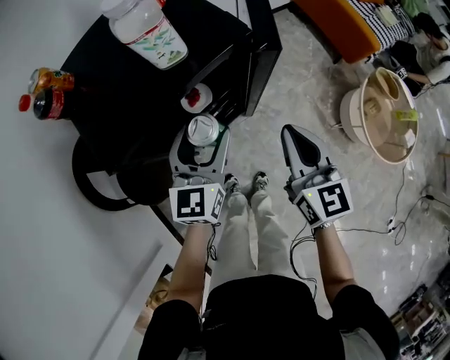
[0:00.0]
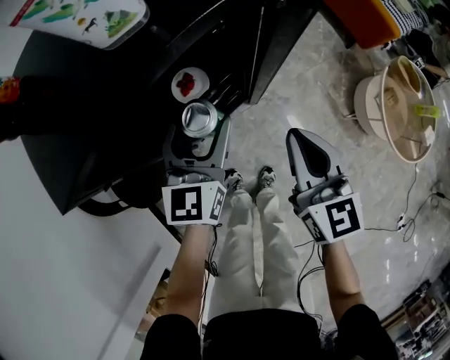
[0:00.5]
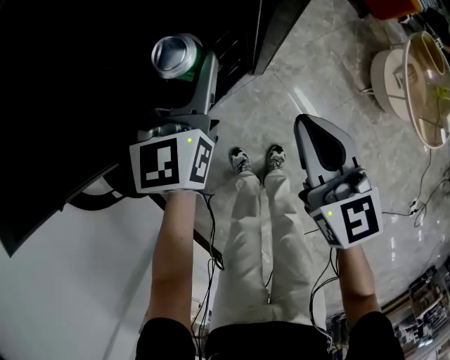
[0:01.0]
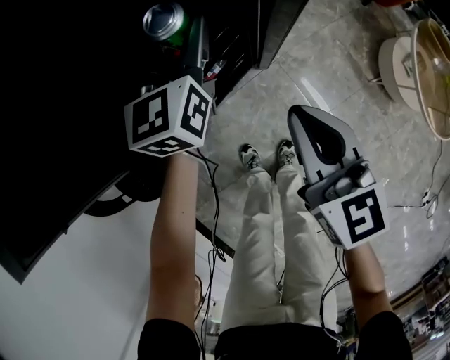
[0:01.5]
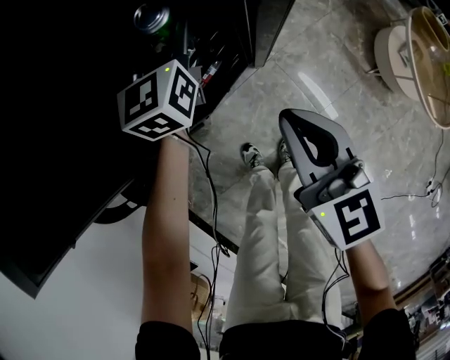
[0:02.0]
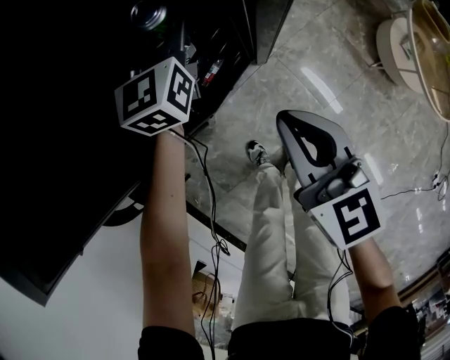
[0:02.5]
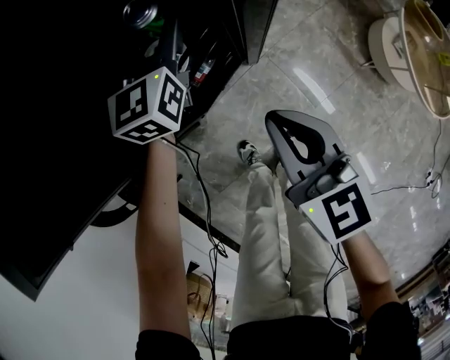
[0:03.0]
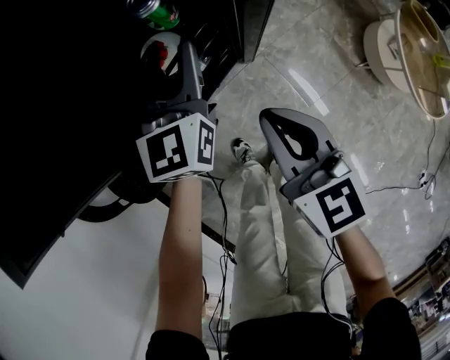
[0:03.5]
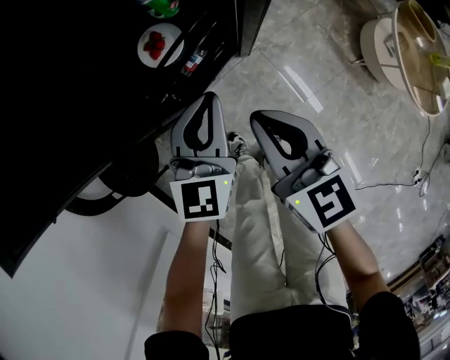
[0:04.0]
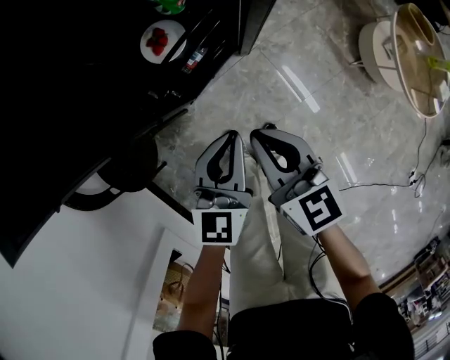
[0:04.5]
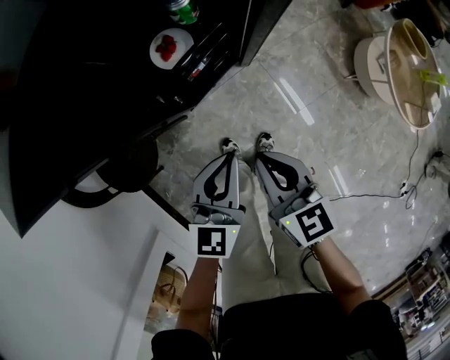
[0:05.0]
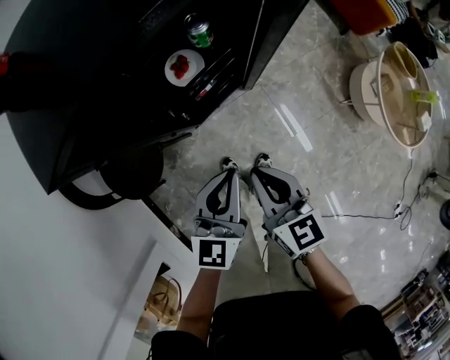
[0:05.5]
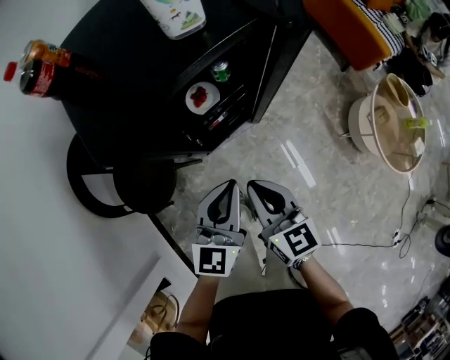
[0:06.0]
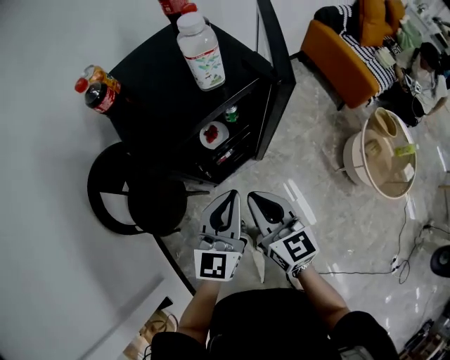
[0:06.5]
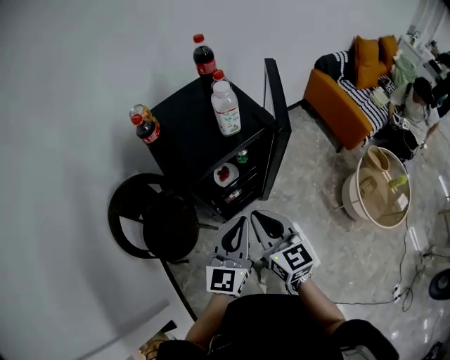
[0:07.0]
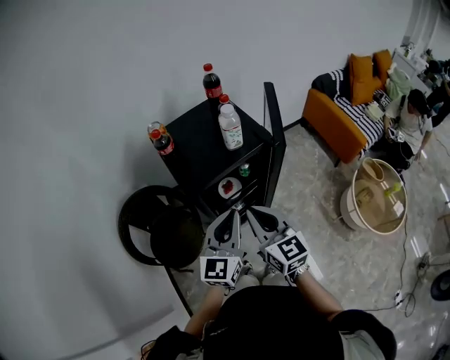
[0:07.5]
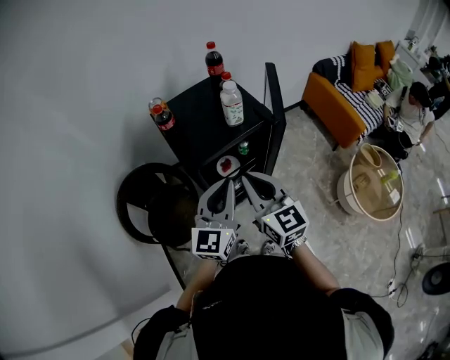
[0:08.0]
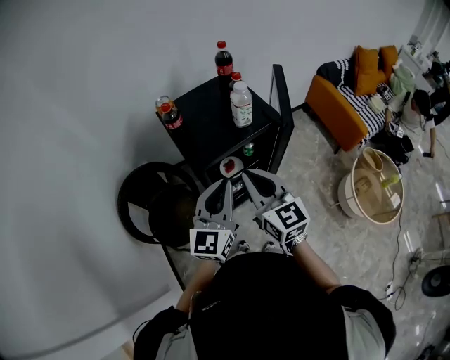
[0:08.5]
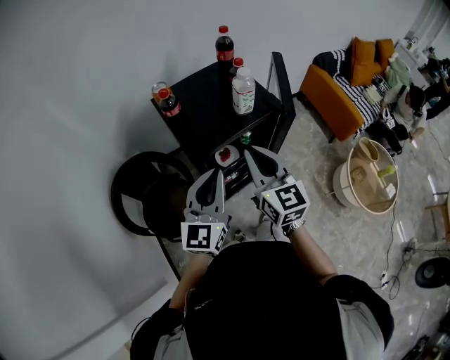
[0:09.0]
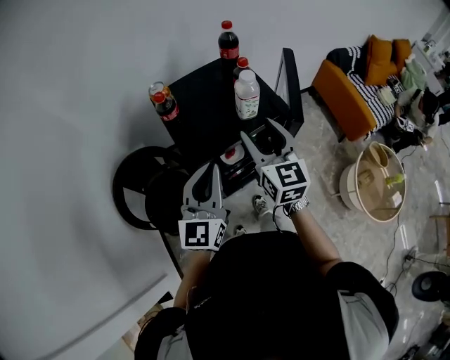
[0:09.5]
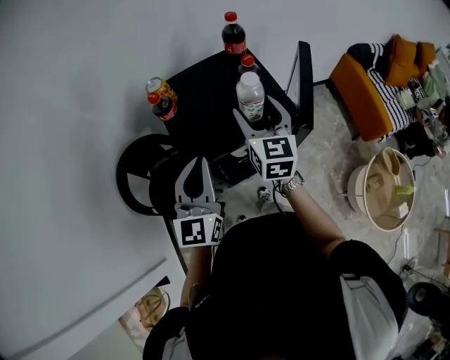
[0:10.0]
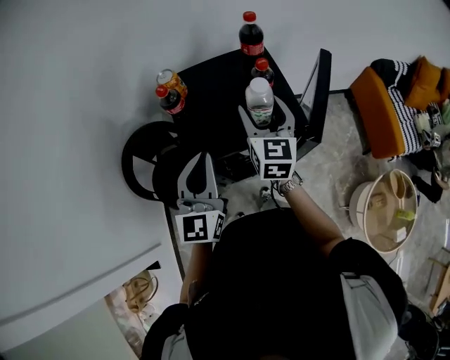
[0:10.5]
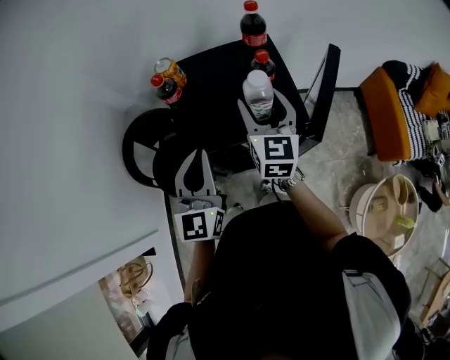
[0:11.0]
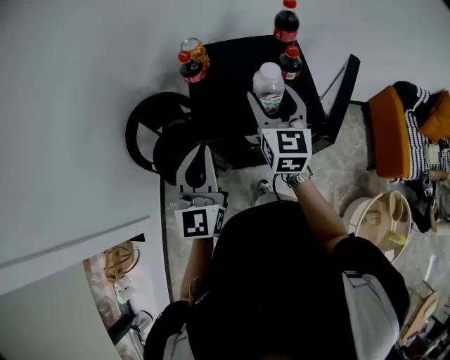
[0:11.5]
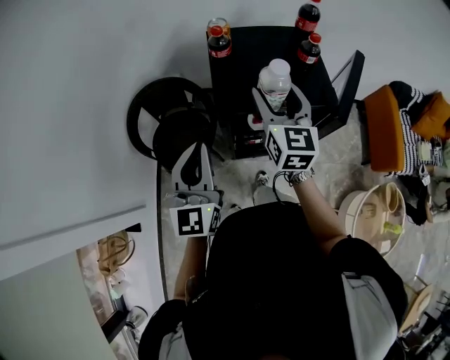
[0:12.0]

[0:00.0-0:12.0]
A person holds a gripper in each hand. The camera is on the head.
0:00.0 to 0:02.0: The right gripper is displaced downward by some 20 cm; the left gripper is displaced downward and forward by approximately 30 cm.
0:02.0 to 0:04.0: The right gripper moves some 5 cm. Meanwhile the left gripper moves backward, some 20 cm, and closes its fingers.
0:04.0 to 0:06.0: The right gripper travels upward and backward by about 15 cm. The left gripper moves upward and backward, about 20 cm.
0:06.0 to 0:08.0: Both grippers travel together upward, roughly 30 cm. The right gripper swivels about 20 degrees.
0:08.0 to 0:10.0: The left gripper heads forward and to the left, covering roughly 15 cm, and rotates about 20 degrees, while the right gripper shifts about 25 cm forward, and opens.
0:10.0 to 0:12.0: The left gripper travels backward and to the left by some 15 cm, while the right gripper shifts roughly 10 cm to the left and backward.

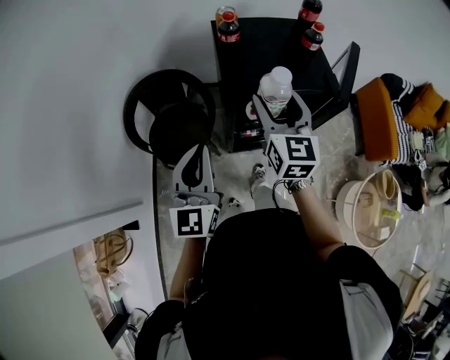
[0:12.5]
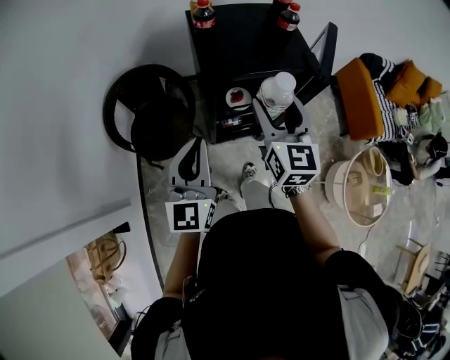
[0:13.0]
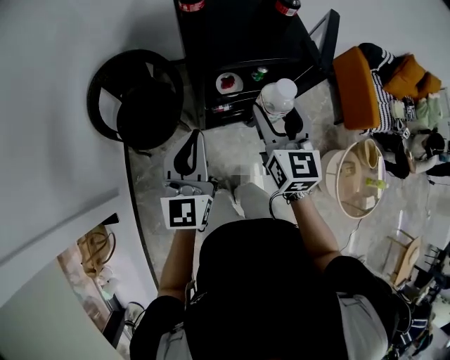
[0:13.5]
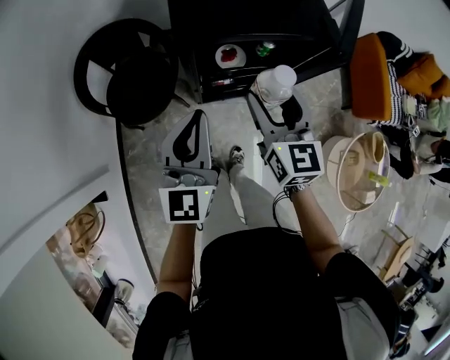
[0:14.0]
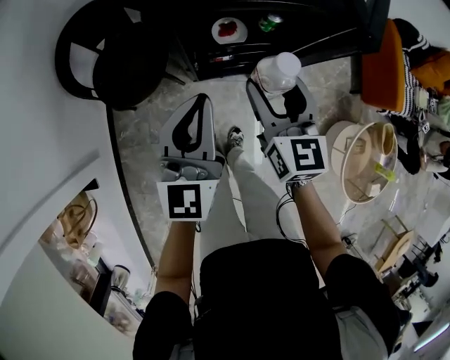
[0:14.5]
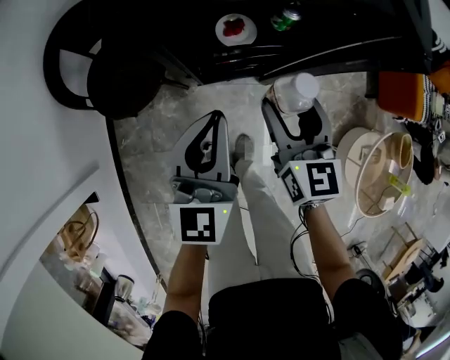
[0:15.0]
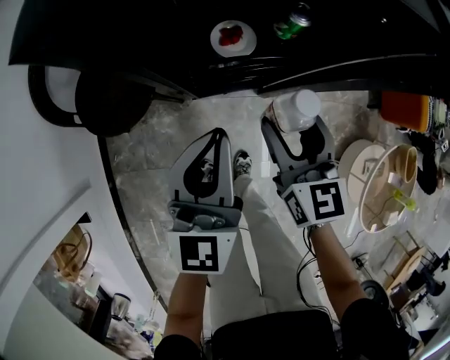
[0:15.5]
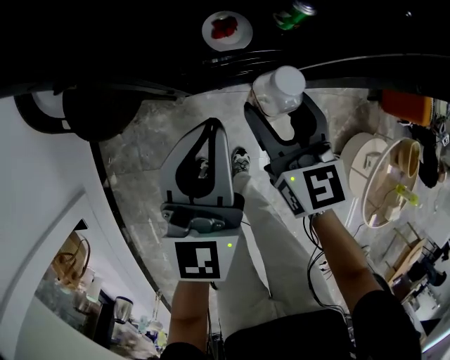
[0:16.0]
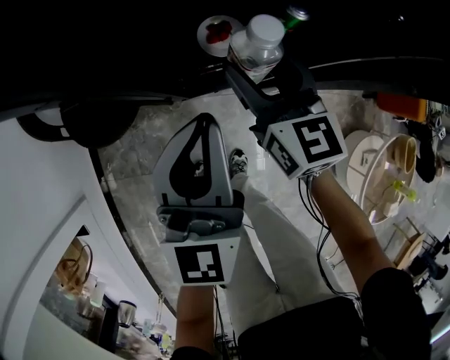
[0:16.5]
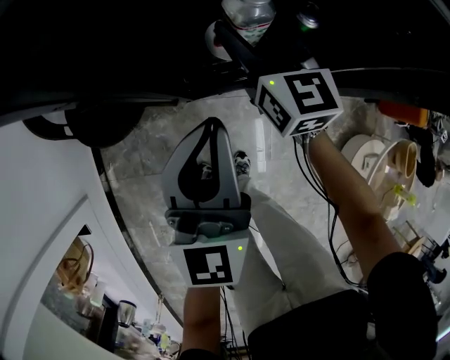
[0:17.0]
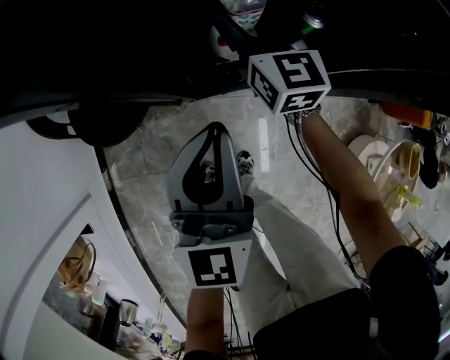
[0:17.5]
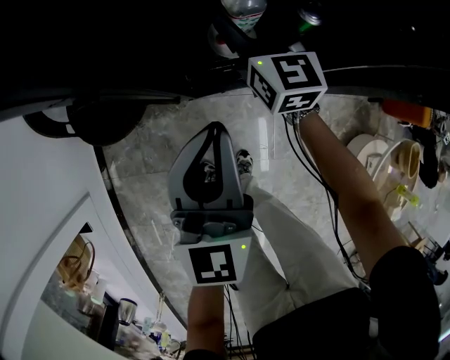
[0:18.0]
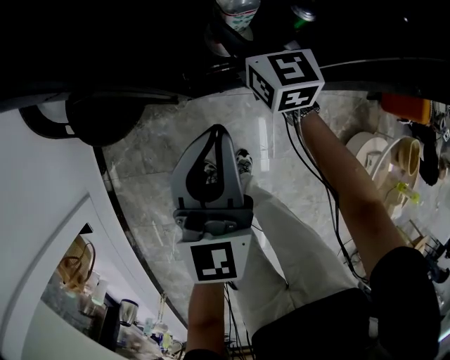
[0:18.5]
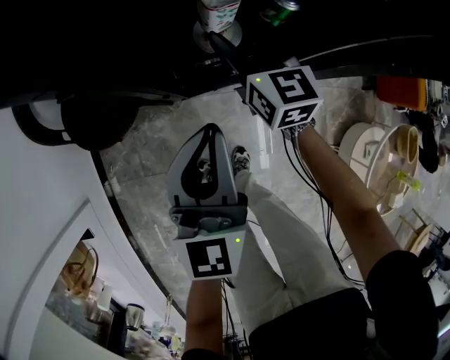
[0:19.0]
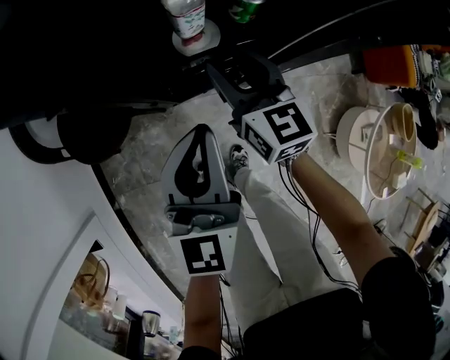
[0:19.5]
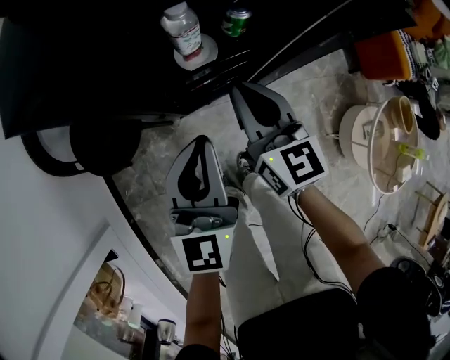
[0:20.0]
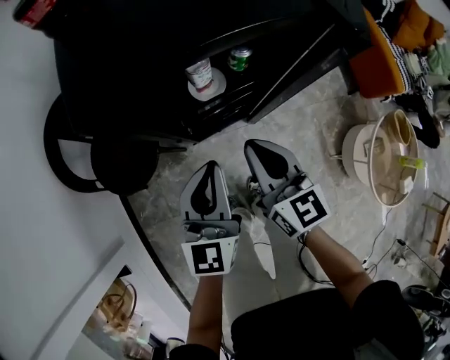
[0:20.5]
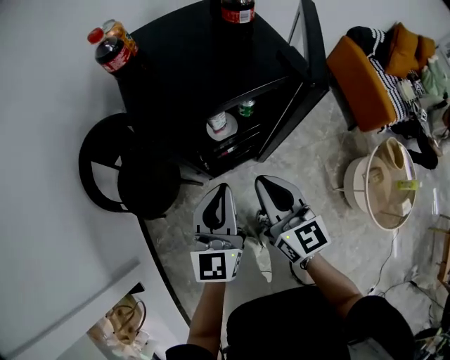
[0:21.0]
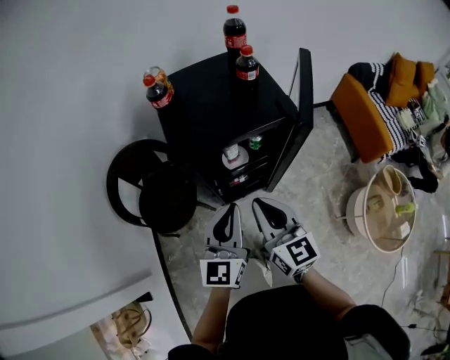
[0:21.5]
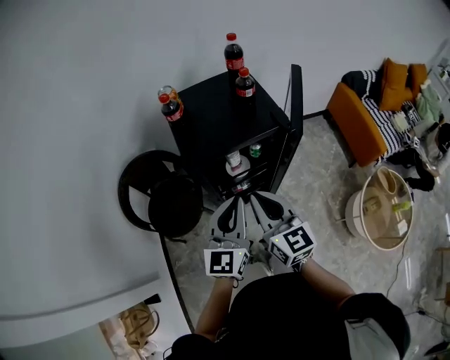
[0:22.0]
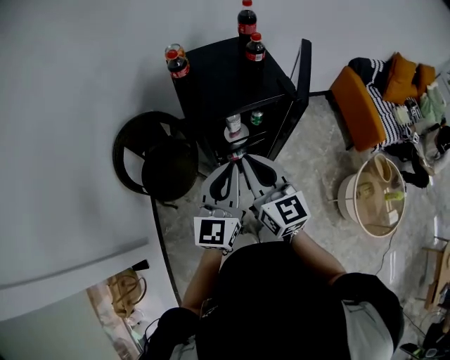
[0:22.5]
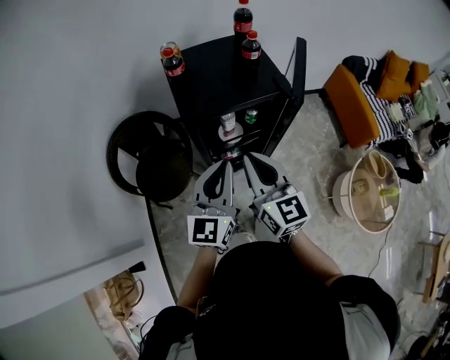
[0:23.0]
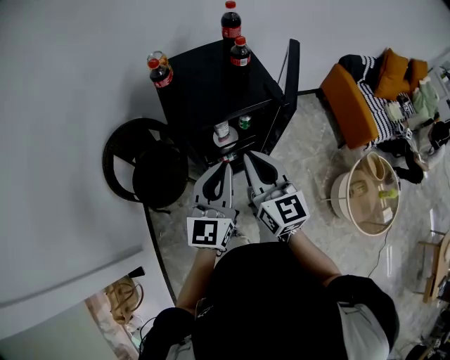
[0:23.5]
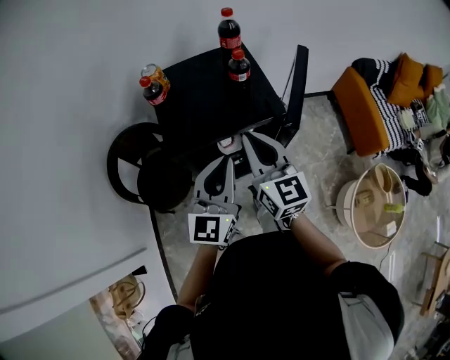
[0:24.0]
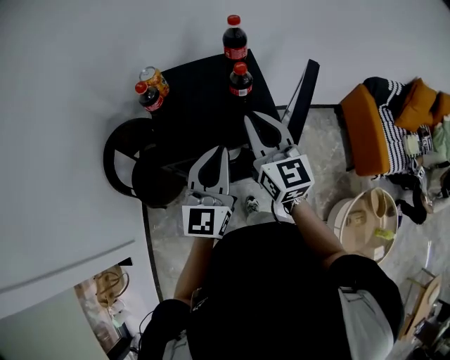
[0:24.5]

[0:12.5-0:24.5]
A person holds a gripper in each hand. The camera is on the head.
0:12.5 to 0:14.5: The two grippers go roughly 20 cm downward and to the right.
0:14.5 to 0:16.5: Both grippers move downward and forward, about 20 cm.
0:16.5 to 0:18.5: The right gripper is displaced forward by roughly 10 cm.
0:18.5 to 0:20.5: The left gripper moves roughly 5 cm; the right gripper heads backward and upward, covering about 25 cm, and closes.
0:20.5 to 0:22.5: The grippers both shift upward by approximately 25 cm.
0:22.5 to 0:24.5: The two grippers go some 20 cm forward and to the right.

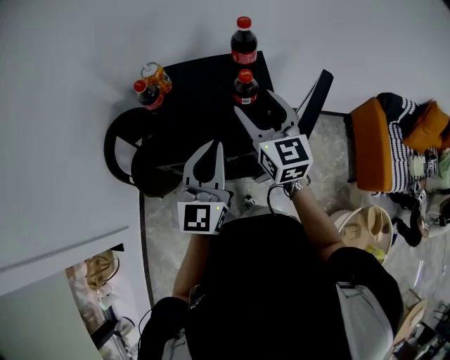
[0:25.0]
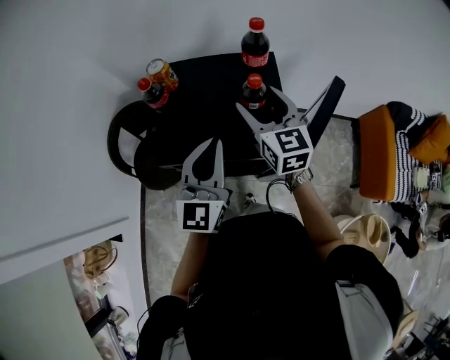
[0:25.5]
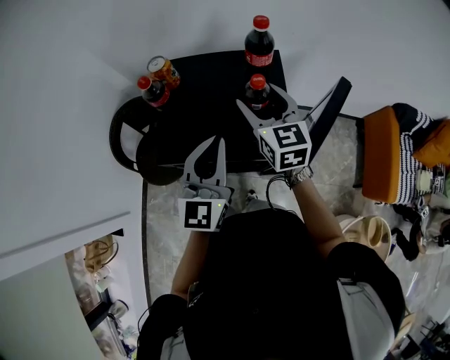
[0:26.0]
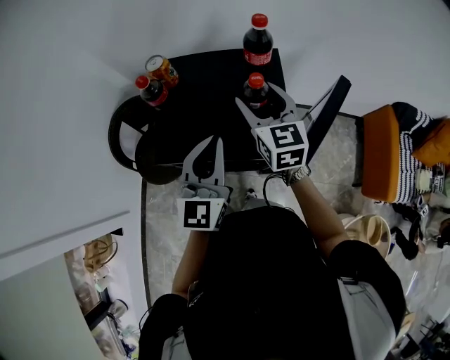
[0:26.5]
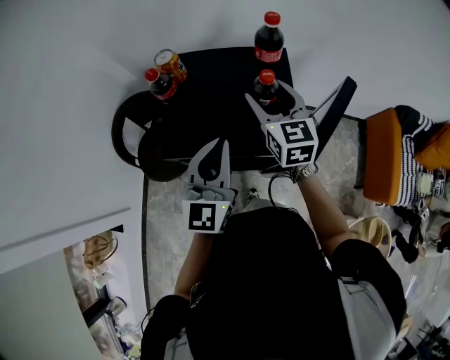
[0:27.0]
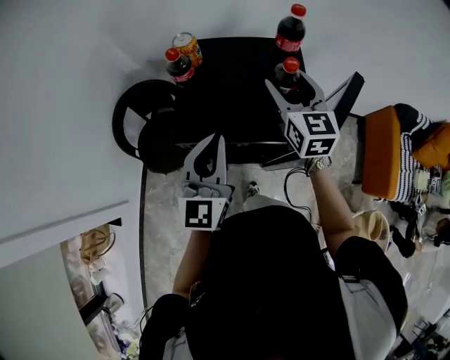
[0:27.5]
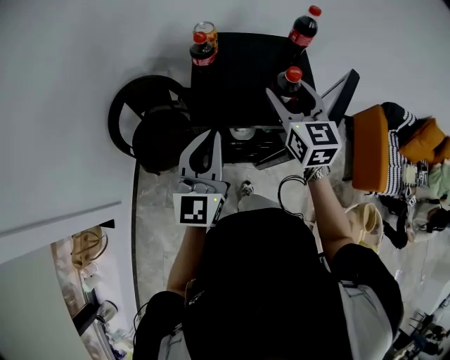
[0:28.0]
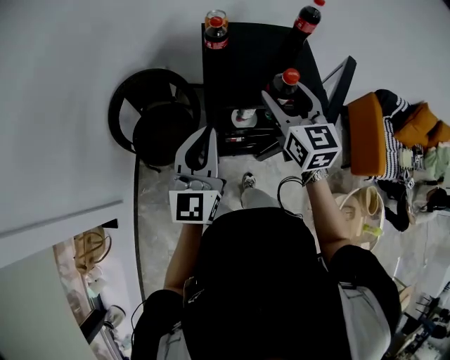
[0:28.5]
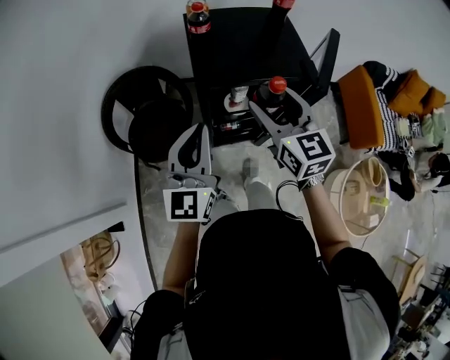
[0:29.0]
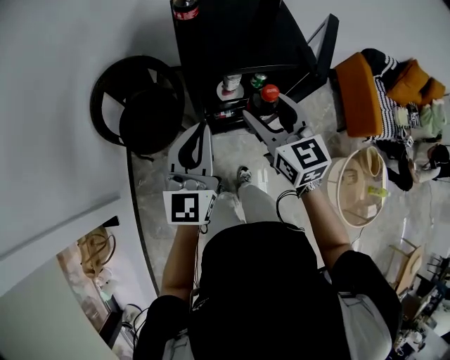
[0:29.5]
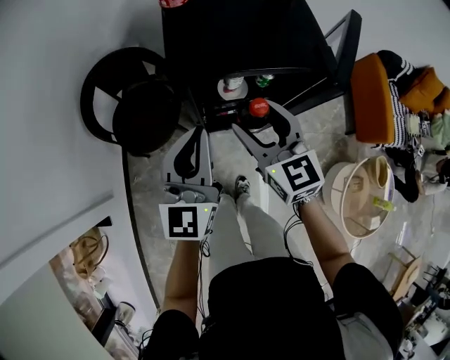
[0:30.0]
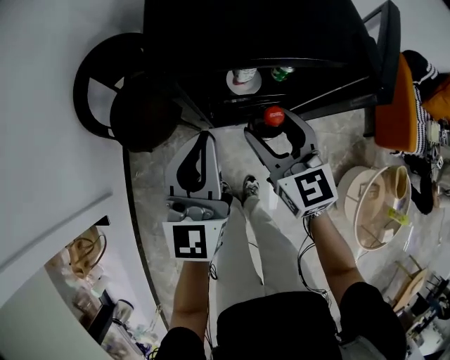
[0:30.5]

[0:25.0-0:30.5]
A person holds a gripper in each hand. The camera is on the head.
0:25.0 to 0:27.0: The right gripper goes some 5 cm forward.
0:27.0 to 0:28.5: The left gripper shifts some 20 cm to the left and backward. The right gripper moves backward and to the left, some 20 cm.
0:28.5 to 0:30.5: The two grippers go roughly 20 cm downward.
